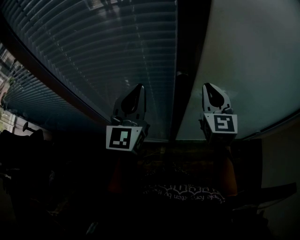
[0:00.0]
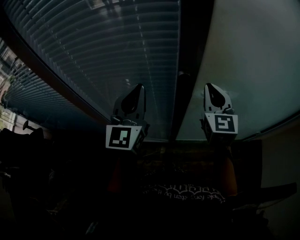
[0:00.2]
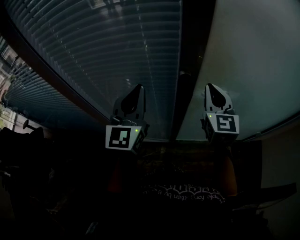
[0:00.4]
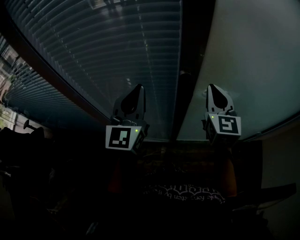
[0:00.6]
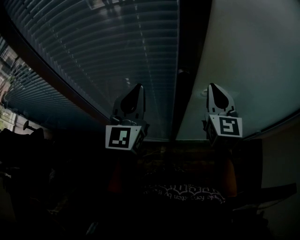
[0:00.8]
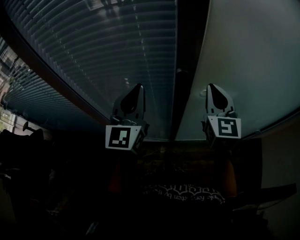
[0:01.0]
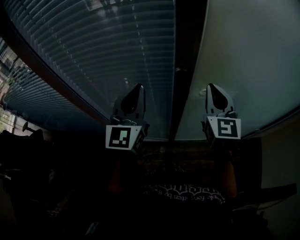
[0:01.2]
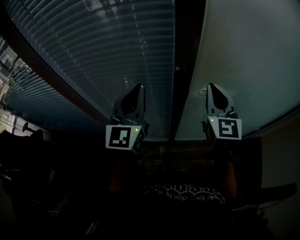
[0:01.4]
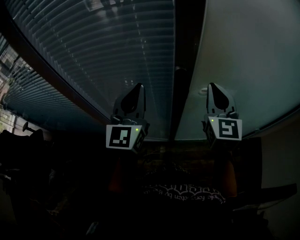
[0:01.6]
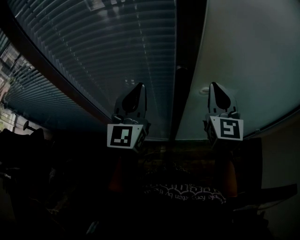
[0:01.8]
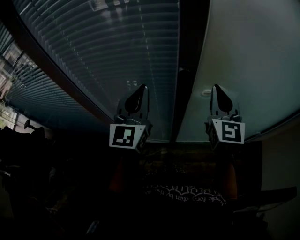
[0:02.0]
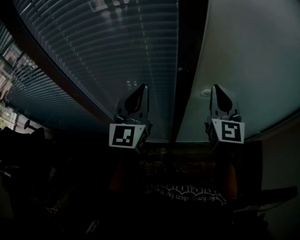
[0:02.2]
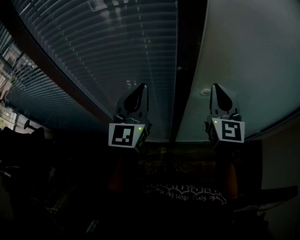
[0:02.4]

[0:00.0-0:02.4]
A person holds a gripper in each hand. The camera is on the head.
0:00.0 to 0:02.4: The grippers move only a little.

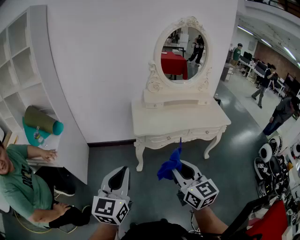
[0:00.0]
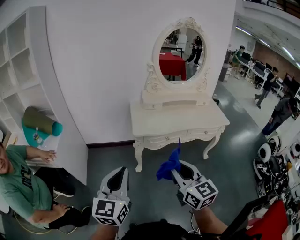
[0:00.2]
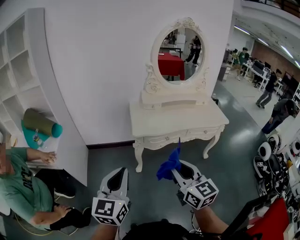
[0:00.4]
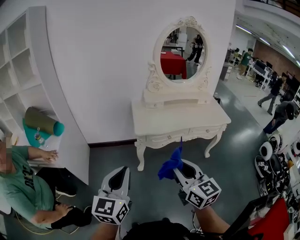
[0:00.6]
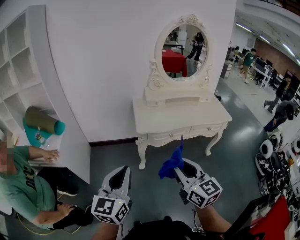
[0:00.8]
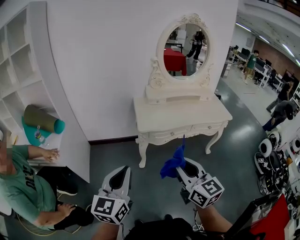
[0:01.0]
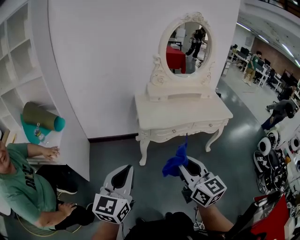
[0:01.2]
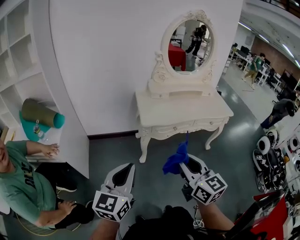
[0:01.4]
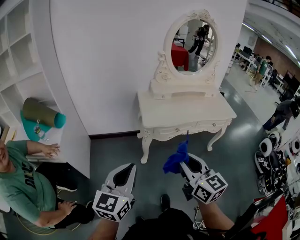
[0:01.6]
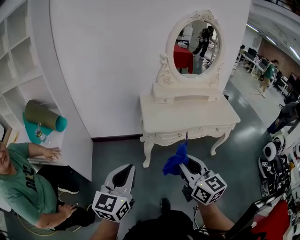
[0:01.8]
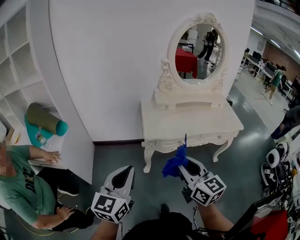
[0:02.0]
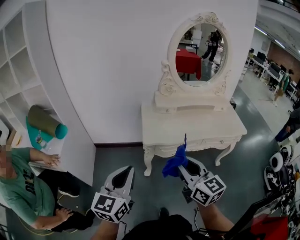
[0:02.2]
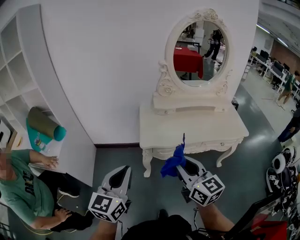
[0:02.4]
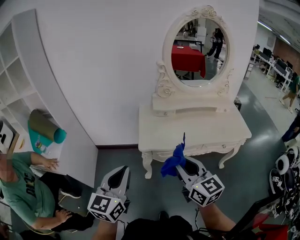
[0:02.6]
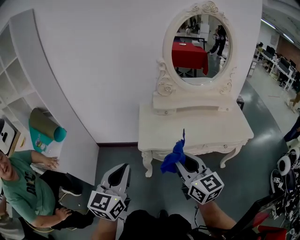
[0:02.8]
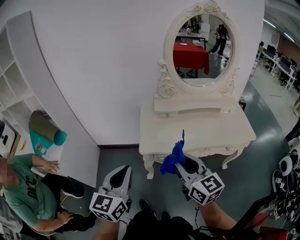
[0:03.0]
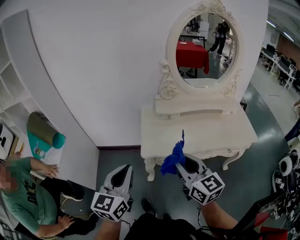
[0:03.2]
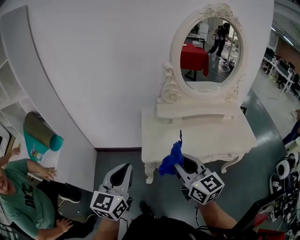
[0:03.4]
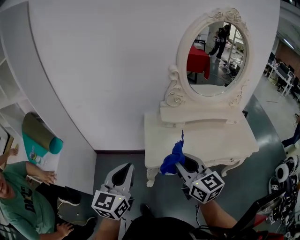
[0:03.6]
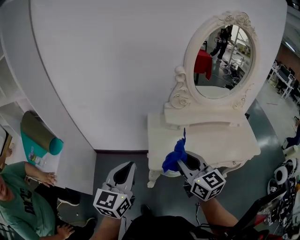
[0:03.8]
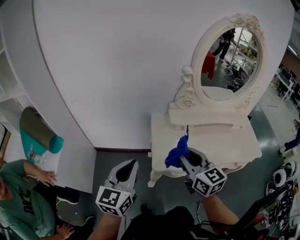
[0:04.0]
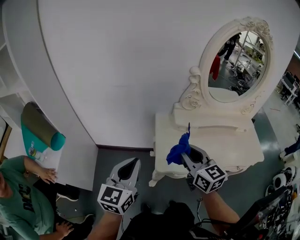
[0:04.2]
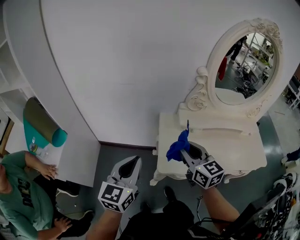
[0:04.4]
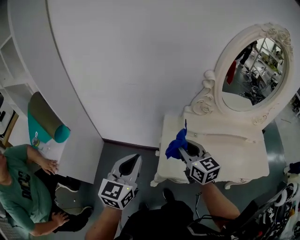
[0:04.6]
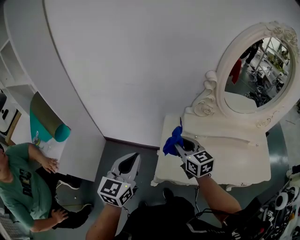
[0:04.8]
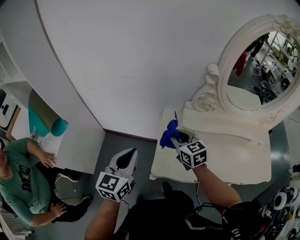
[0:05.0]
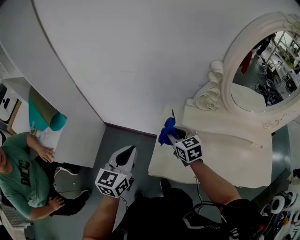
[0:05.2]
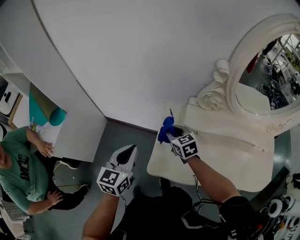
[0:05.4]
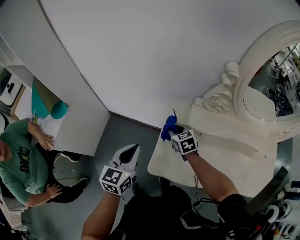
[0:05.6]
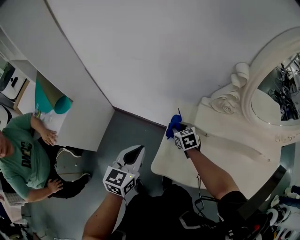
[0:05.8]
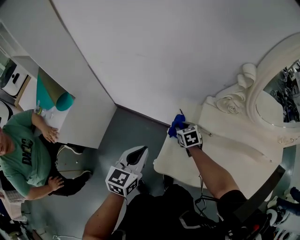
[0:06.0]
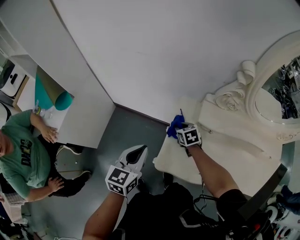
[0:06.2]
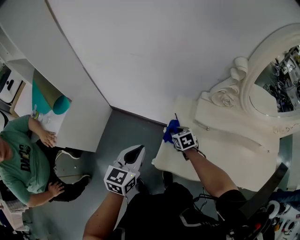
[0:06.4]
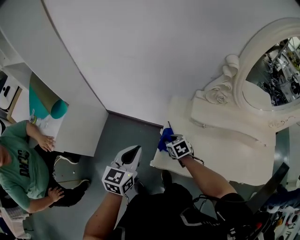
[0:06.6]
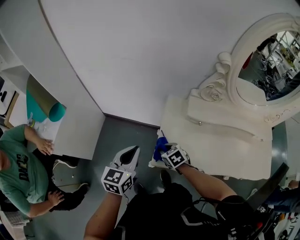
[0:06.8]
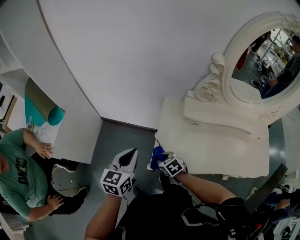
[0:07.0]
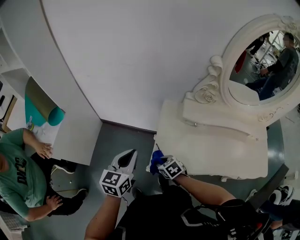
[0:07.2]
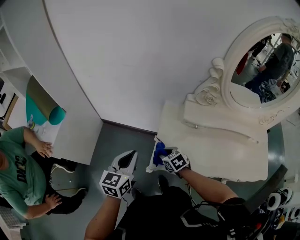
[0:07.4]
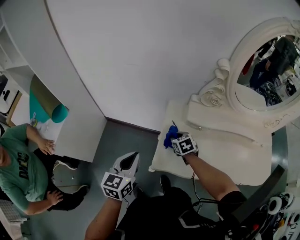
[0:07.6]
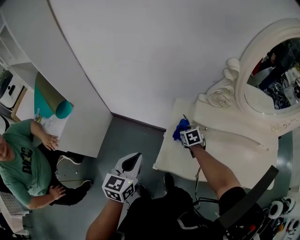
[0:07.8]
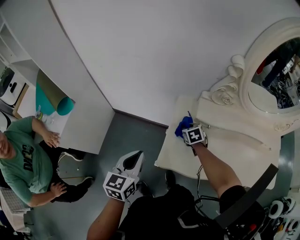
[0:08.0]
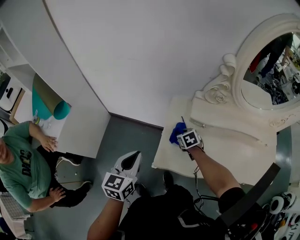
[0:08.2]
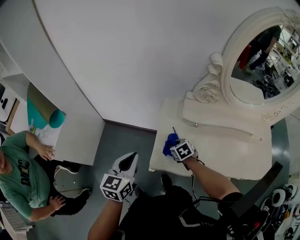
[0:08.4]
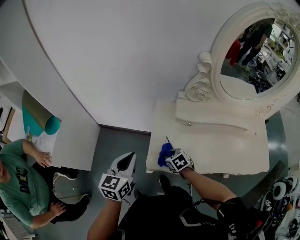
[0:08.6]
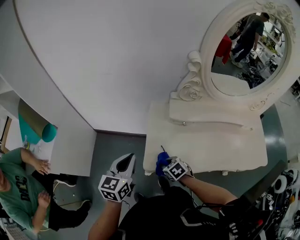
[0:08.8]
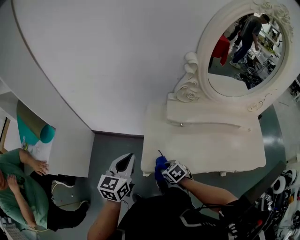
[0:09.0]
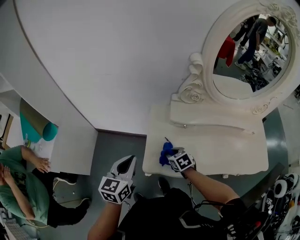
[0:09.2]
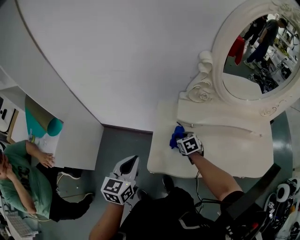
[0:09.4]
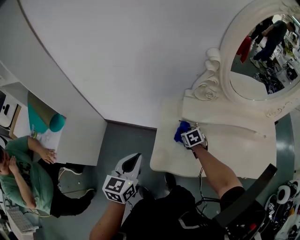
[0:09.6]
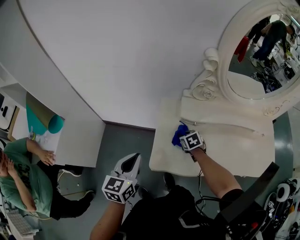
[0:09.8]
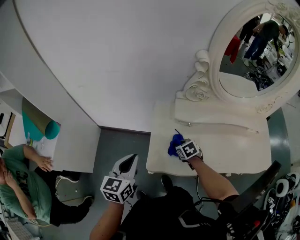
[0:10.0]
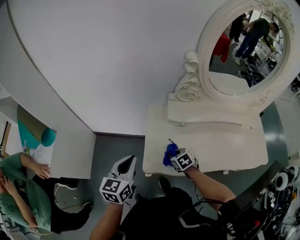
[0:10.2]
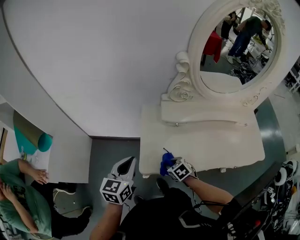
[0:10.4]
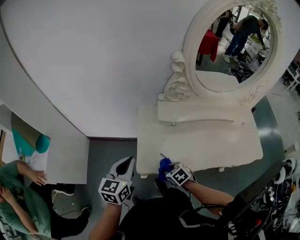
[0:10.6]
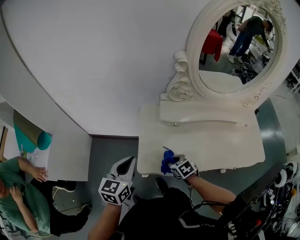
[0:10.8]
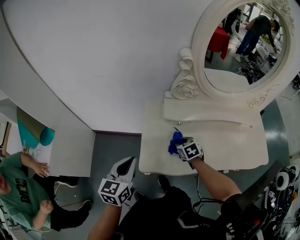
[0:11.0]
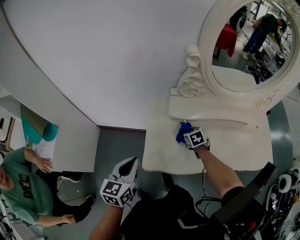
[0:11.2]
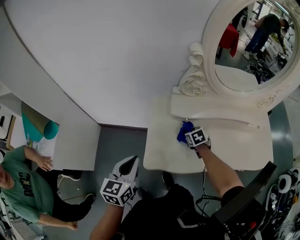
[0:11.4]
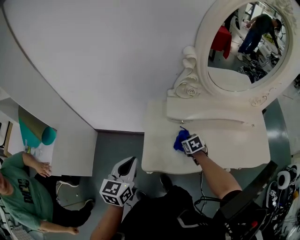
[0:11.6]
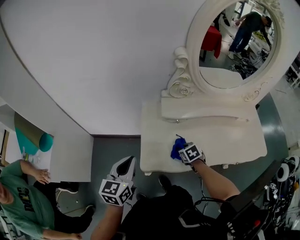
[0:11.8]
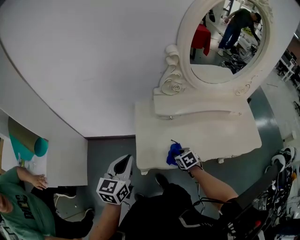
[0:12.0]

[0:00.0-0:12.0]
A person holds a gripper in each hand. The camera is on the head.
0:00.0 to 0:01.6: Both grippers move to the left, about 5 cm.
0:01.6 to 0:03.0: Both grippers move forward and to the right, some 25 cm.
0:03.0 to 0:04.4: Both grippers travel together forward and to the left, approximately 25 cm.
0:04.4 to 0:06.0: The right gripper travels downward and forward by about 35 cm, and tilts its fingers roughly 40 degrees downward. Meanwhile the left gripper moves downward, forward and to the right, roughly 15 cm.
0:06.0 to 0:07.6: The right gripper travels backward by approximately 10 cm. The left gripper ends up roughly 5 cm from where it was.
0:07.6 to 0:09.0: The right gripper is displaced backward by about 15 cm.
0:09.0 to 0:10.4: The right gripper travels to the right by some 5 cm, and travels forward and back again, some 20 cm each way.
0:10.4 to 0:12.0: The right gripper moves to the right, some 5 cm, and reaches roughly 15 cm forward, then returns.

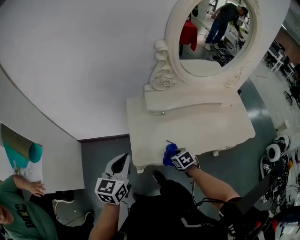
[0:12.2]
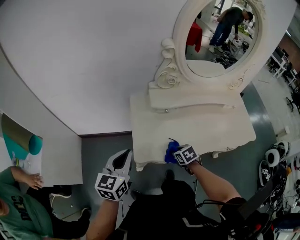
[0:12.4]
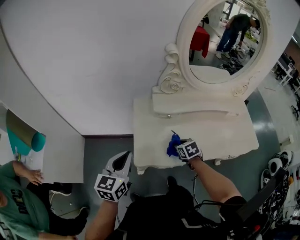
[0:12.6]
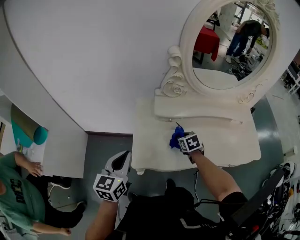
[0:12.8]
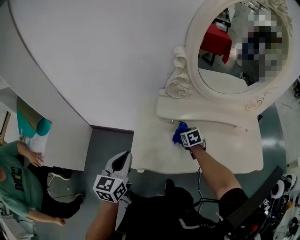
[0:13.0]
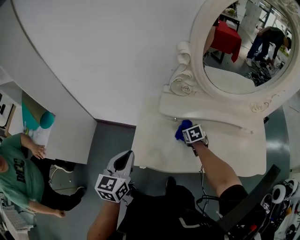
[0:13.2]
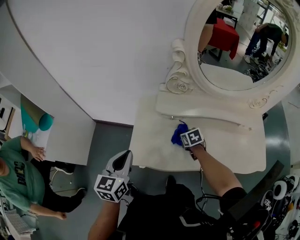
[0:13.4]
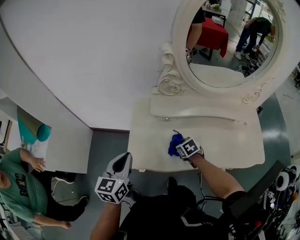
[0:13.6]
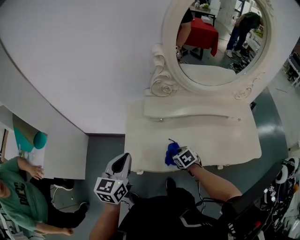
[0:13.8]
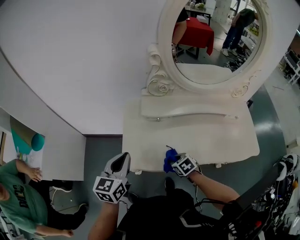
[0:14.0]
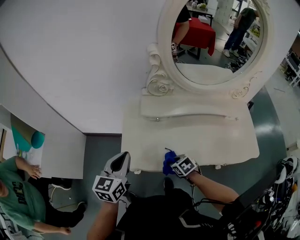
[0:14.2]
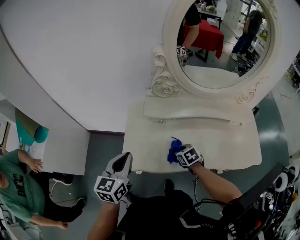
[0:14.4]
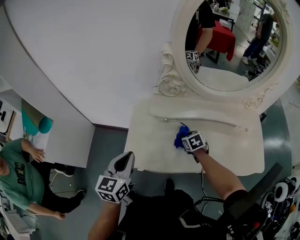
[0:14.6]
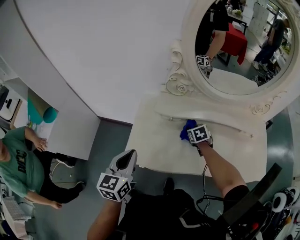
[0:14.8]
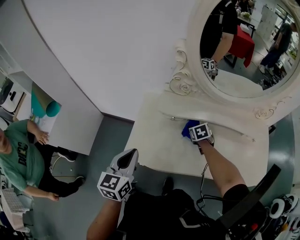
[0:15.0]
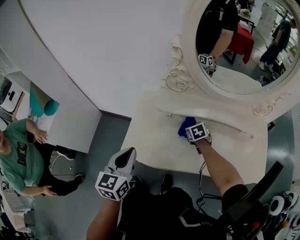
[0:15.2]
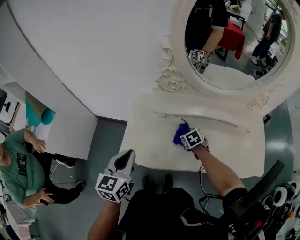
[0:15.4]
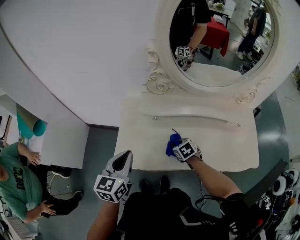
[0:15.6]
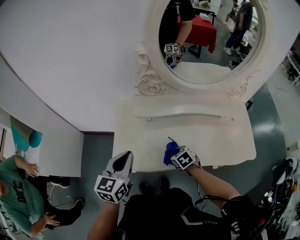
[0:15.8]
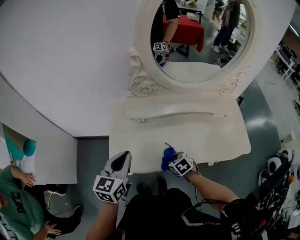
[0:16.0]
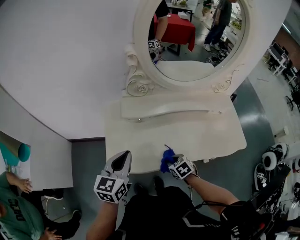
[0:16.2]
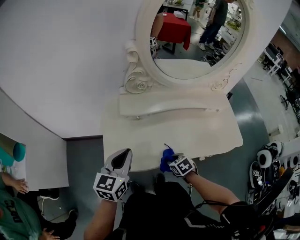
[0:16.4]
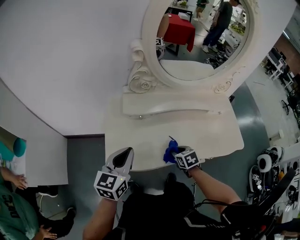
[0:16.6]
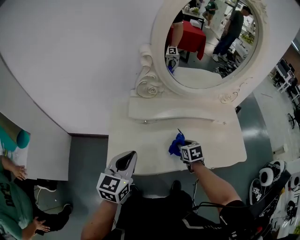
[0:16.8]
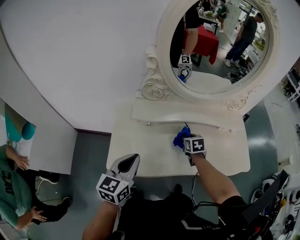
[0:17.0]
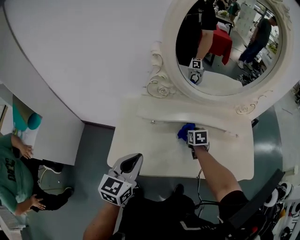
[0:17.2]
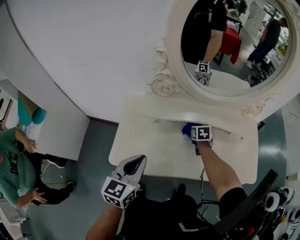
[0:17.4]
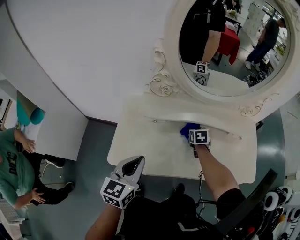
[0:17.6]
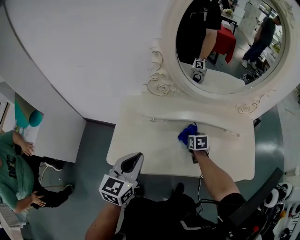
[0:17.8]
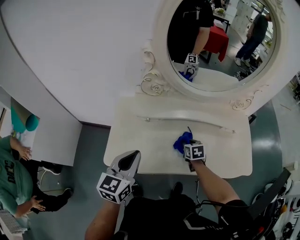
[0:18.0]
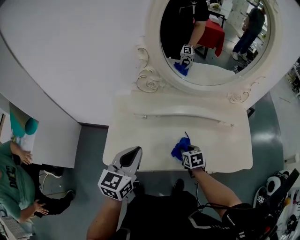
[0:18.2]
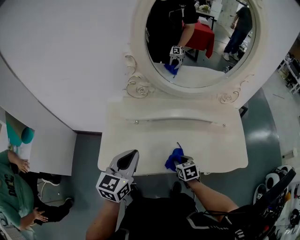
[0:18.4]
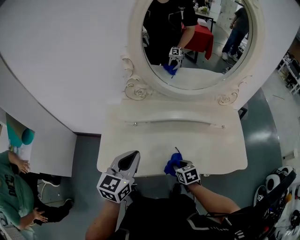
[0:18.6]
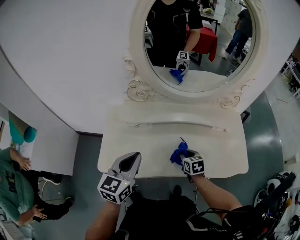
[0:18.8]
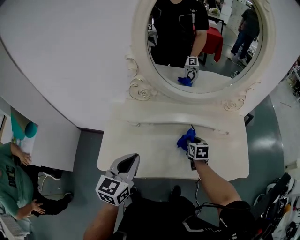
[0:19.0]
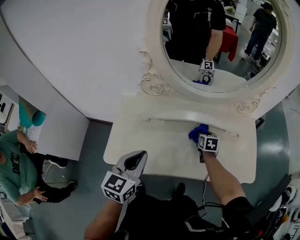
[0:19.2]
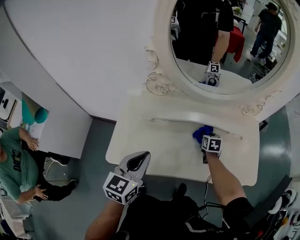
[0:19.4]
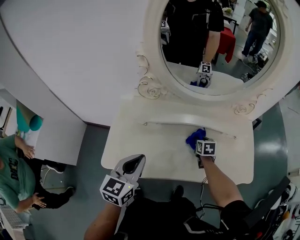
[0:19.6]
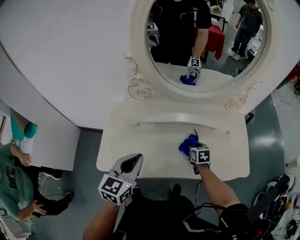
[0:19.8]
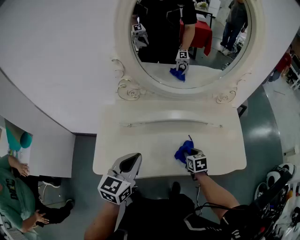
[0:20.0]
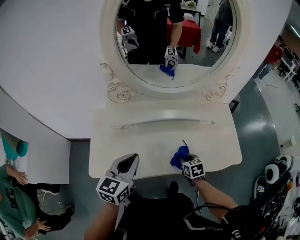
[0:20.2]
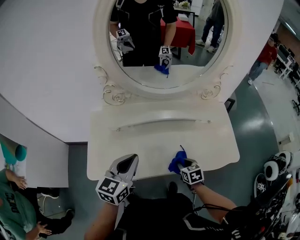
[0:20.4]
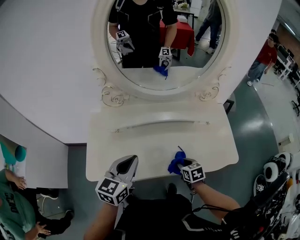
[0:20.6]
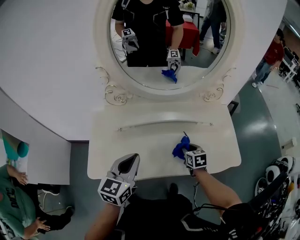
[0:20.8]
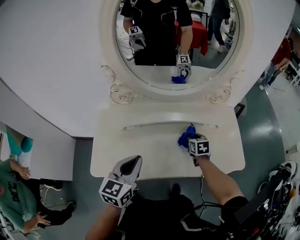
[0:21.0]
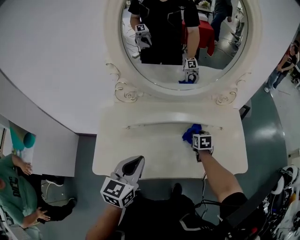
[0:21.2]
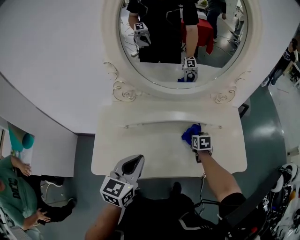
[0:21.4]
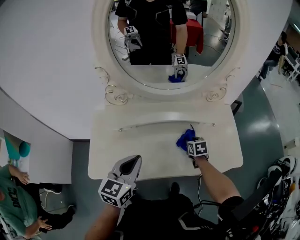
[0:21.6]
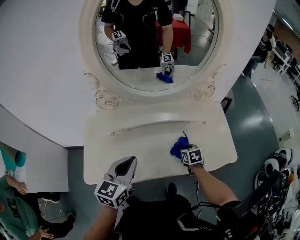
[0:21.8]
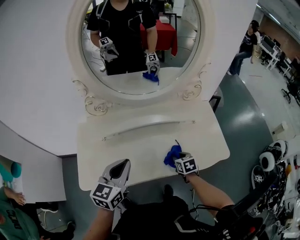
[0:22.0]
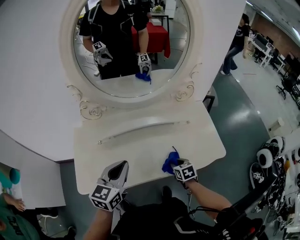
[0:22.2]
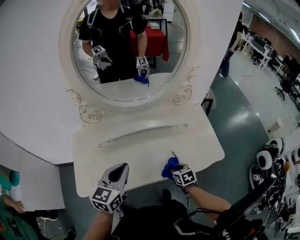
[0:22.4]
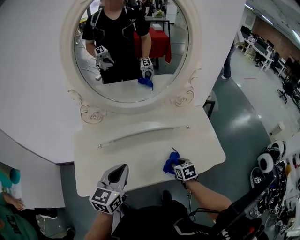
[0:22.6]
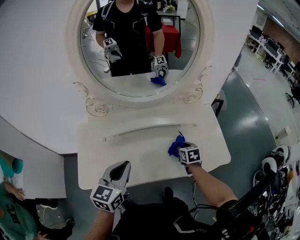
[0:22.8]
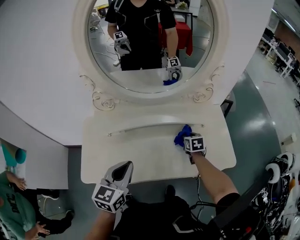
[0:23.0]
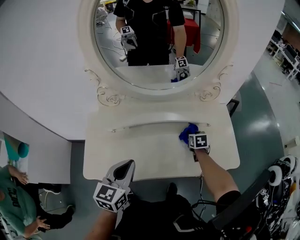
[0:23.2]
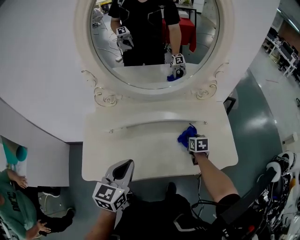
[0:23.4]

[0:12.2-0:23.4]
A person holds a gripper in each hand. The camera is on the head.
0:12.2 to 0:13.8: Both grippers travel together to the right, about 5 cm. The right gripper goes forward and returns, roughly 20 cm each way.
0:13.8 to 0:15.4: The left gripper moves to the right, approximately 5 cm. Meanwhile the right gripper goes forward and backward, approximately 20 cm each way, reversing 2 times.
0:15.4 to 0:17.0: The right gripper shifts about 10 cm to the right, moves about 15 cm backward and comes back, and turns by about 30 degrees. Meanwhile the left gripper shifts by some 5 cm.
0:17.0 to 0:18.6: The right gripper heads backward, covering about 15 cm, while the left gripper goes some 10 cm to the right.
0:18.6 to 0:20.2: The right gripper travels to the right by about 10 cm, and travels forward and back again, about 20 cm each way. Meanwhile the left gripper goes about 5 cm to the right.
0:20.2 to 0:21.8: The right gripper goes some 5 cm to the right, and goes forward and returns, some 15 cm each way.
0:21.8 to 0:23.4: The right gripper heads forward and to the right, covering roughly 10 cm.
